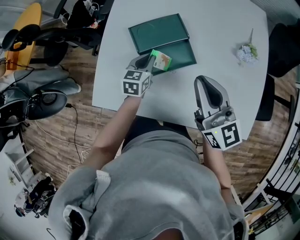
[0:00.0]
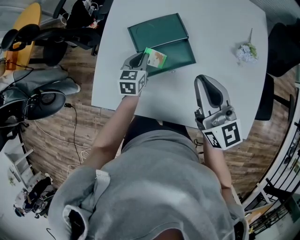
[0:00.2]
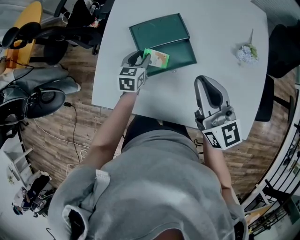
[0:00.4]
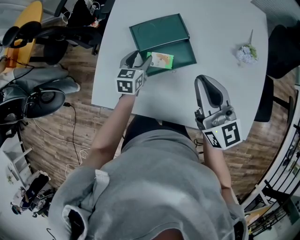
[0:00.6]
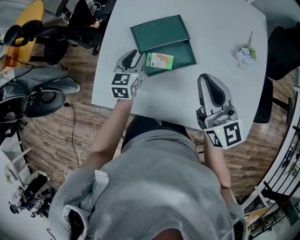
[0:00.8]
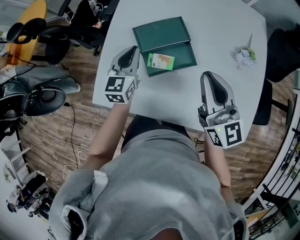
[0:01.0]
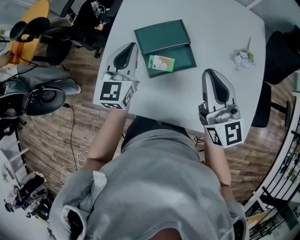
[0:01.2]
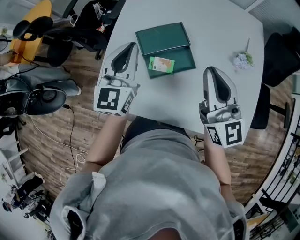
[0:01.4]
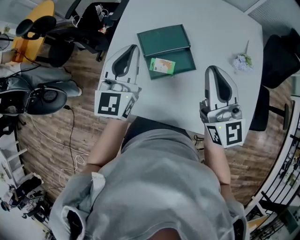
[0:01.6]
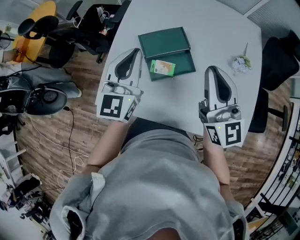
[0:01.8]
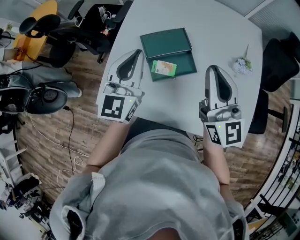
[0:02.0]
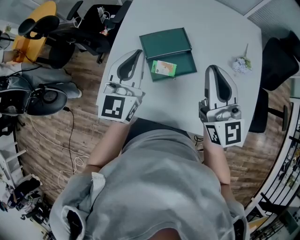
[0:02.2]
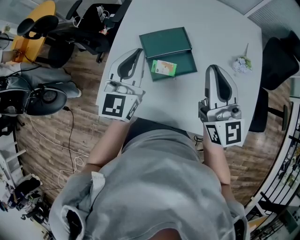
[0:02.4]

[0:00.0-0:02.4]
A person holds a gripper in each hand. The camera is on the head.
0:00.0 to 0:01.2: The left gripper is displaced upward by about 20 cm, swivels roughly 30 degrees, and opens and closes again.
0:01.2 to 0:02.4: The grippers both shift upward by some 5 cm.

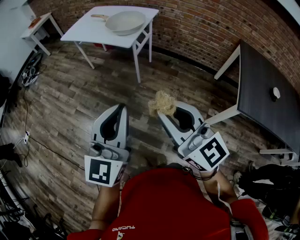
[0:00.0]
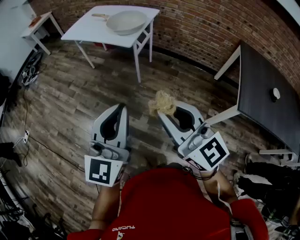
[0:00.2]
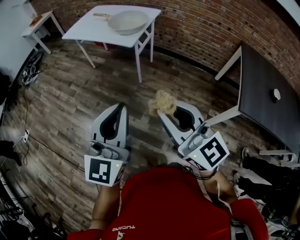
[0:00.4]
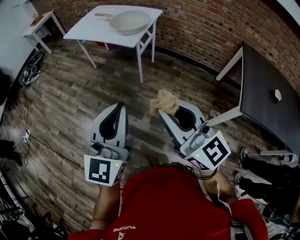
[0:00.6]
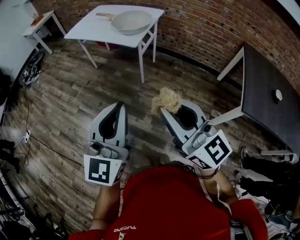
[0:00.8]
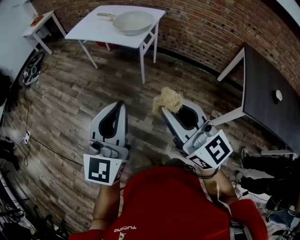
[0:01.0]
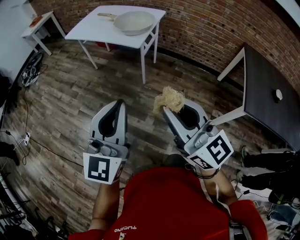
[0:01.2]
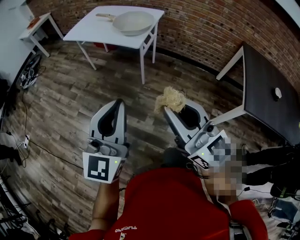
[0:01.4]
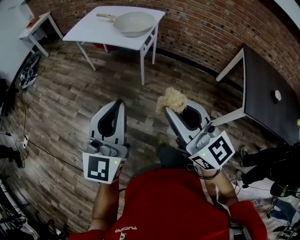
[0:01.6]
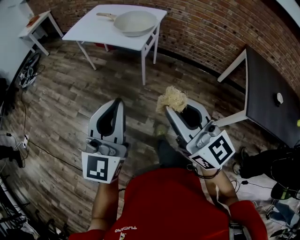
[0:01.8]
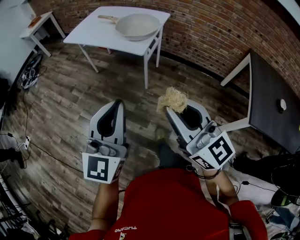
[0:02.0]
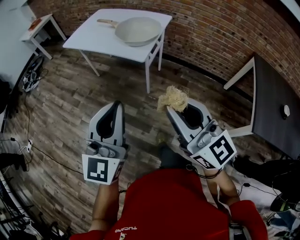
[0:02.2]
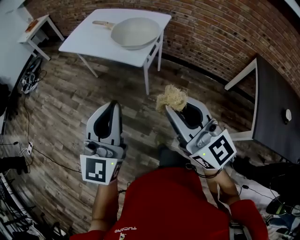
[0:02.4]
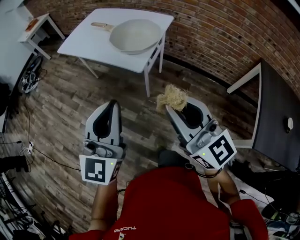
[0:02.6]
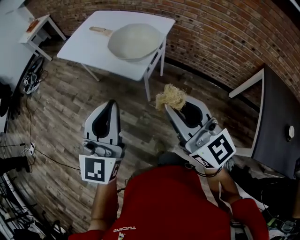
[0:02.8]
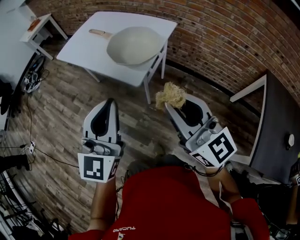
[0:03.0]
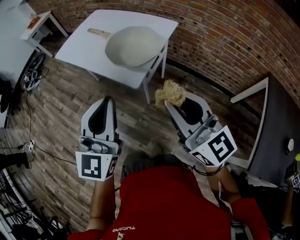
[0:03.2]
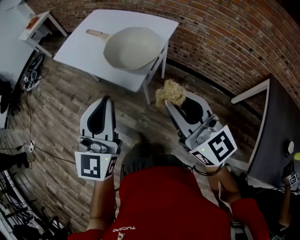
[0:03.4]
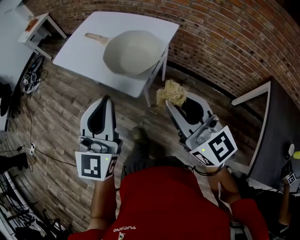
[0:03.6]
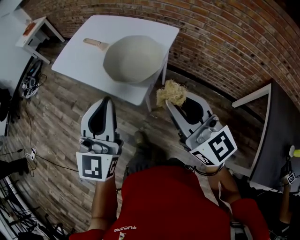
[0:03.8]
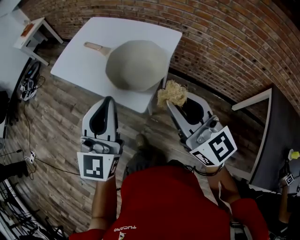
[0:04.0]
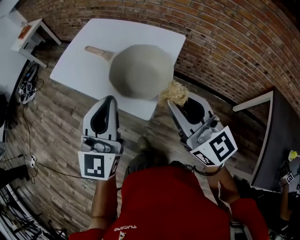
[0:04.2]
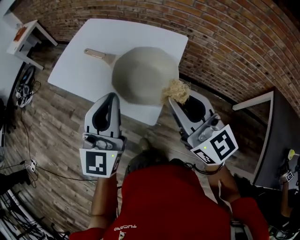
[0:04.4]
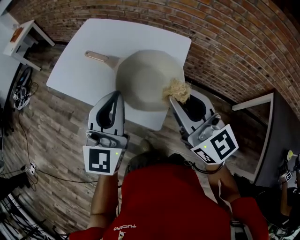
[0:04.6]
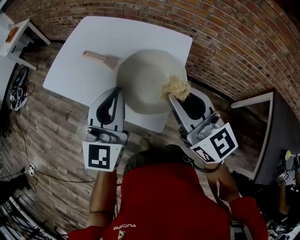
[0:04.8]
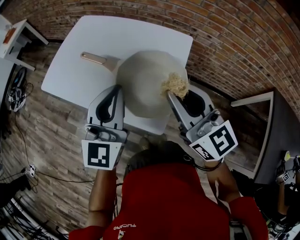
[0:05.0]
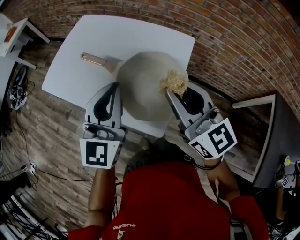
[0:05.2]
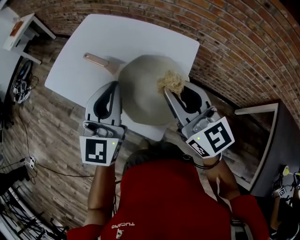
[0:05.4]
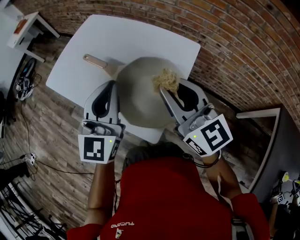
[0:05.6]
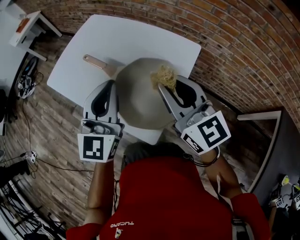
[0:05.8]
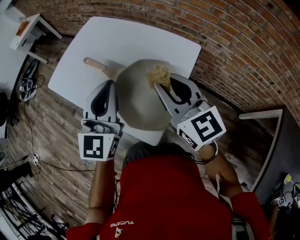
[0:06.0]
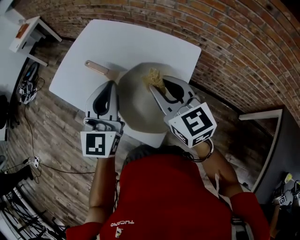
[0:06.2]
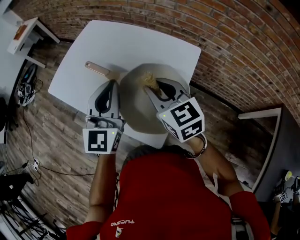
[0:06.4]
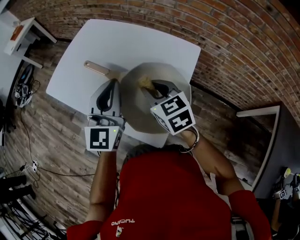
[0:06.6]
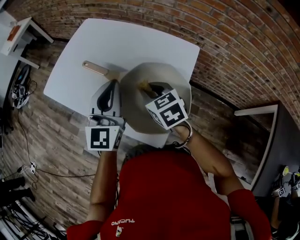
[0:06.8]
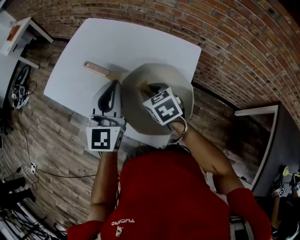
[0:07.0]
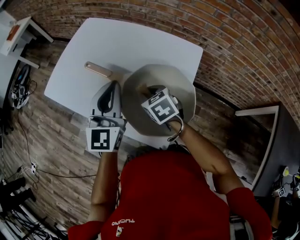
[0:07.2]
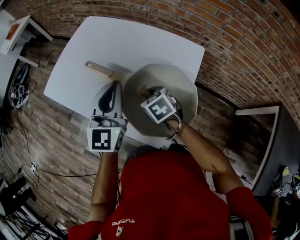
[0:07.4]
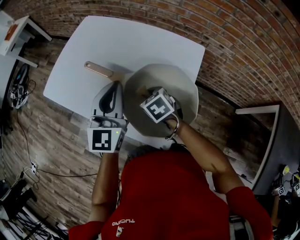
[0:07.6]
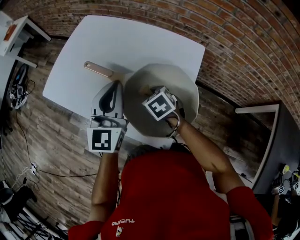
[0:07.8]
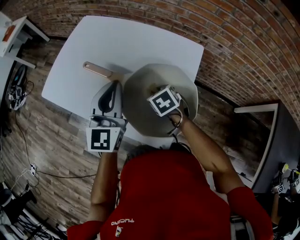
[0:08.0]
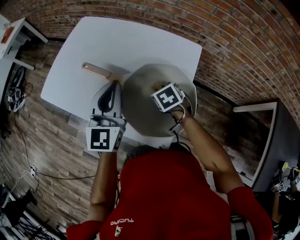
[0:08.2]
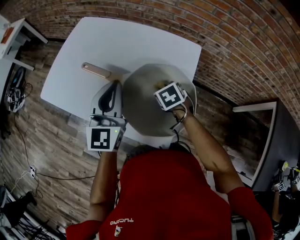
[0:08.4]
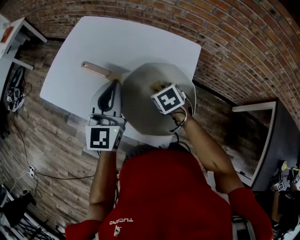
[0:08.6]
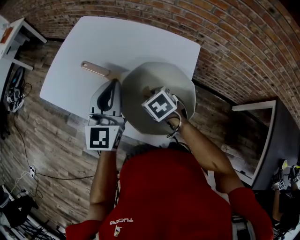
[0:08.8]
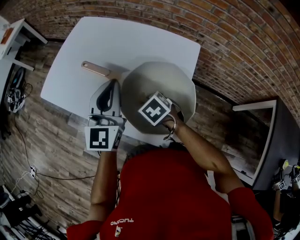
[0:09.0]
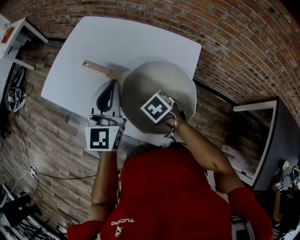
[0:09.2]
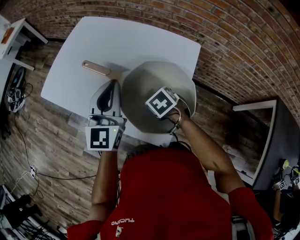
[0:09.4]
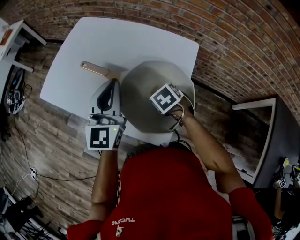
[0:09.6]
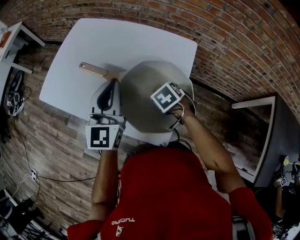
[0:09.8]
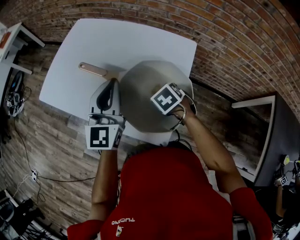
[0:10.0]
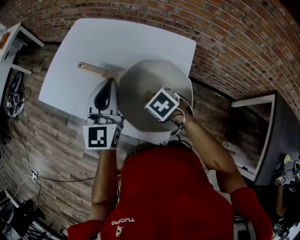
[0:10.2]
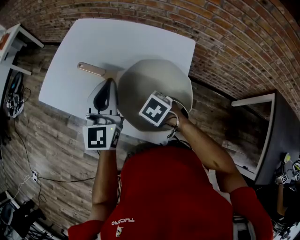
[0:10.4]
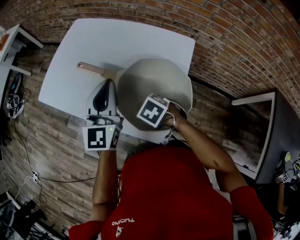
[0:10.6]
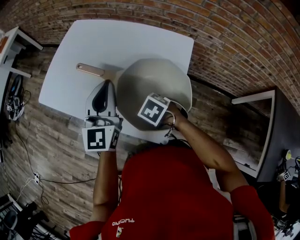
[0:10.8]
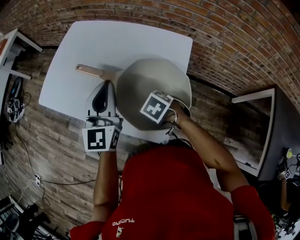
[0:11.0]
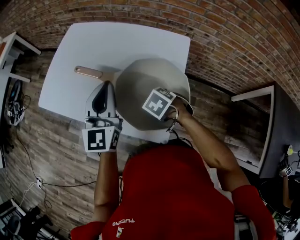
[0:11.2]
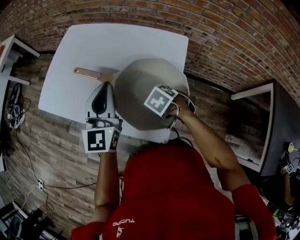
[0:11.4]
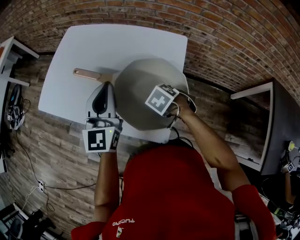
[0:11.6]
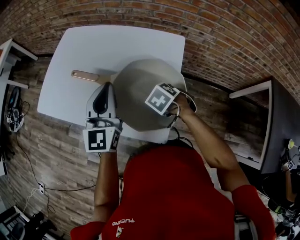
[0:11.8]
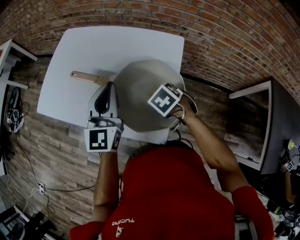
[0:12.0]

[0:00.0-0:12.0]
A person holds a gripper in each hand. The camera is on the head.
0:00.0 to 0:01.6: The right gripper moves to the left, some 5 cm, while the left gripper is displaced to the left and forward by roughly 10 cm.
0:01.6 to 0:03.0: Both grippers move forward, roughly 35 cm.
0:03.0 to 0:04.4: Both grippers travel together forward, roughly 25 cm.
0:04.4 to 0:06.0: Both grippers move forward, roughly 15 cm.
0:06.0 to 0:07.6: The right gripper is displaced downward by some 25 cm, and angles its fingers downward, by roughly 50 degrees. The left gripper goes about 10 cm forward and downward.
0:07.6 to 0:09.0: The right gripper goes to the right and returns, some 10 cm each way.
0:10.4 to 0:12.0: The right gripper shifts by roughly 10 cm.

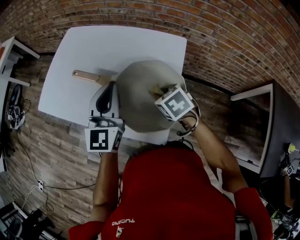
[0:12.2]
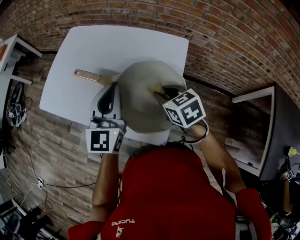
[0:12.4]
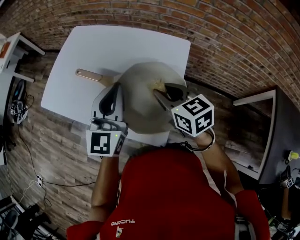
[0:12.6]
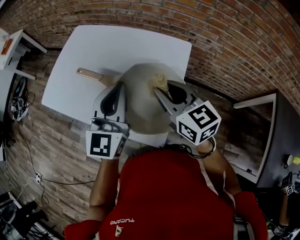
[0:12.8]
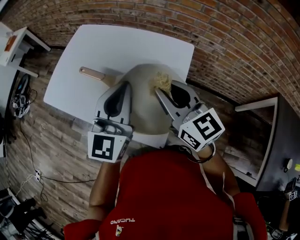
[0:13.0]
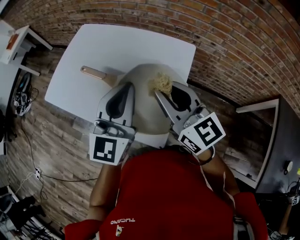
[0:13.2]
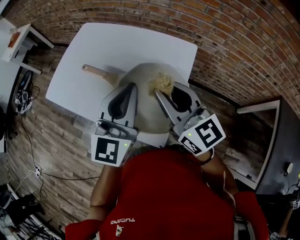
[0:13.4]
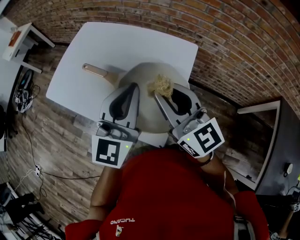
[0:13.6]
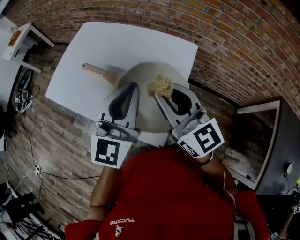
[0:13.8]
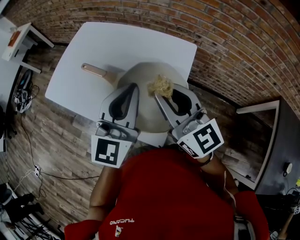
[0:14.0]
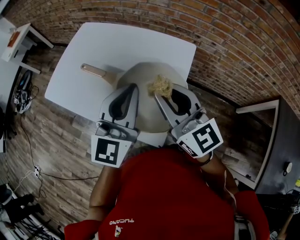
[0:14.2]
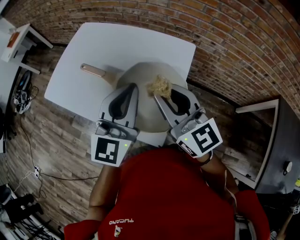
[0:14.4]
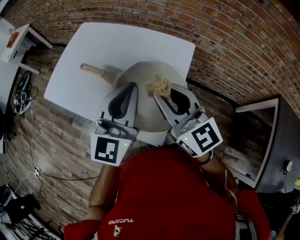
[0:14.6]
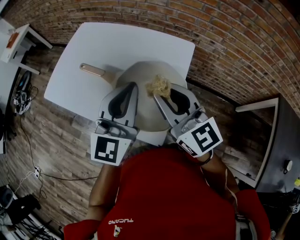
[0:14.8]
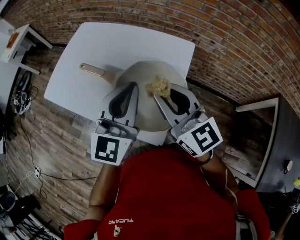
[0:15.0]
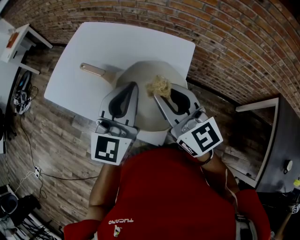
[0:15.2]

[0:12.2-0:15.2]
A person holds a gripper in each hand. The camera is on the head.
0:12.2 to 0:13.8: The left gripper travels upward, to the right and backward by some 10 cm. The right gripper heads upward, covering some 20 cm, and tips its fingers upward by about 60 degrees.
0:13.8 to 0:15.2: The two grippers keep their place.

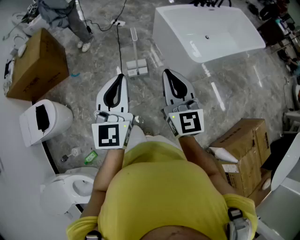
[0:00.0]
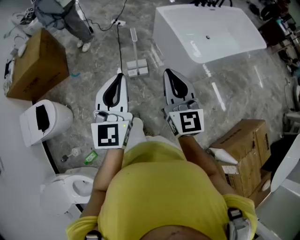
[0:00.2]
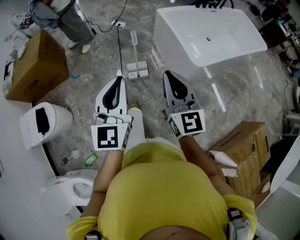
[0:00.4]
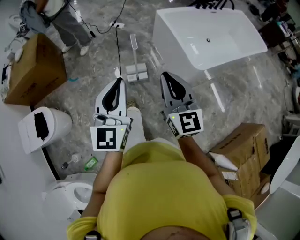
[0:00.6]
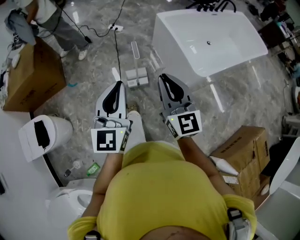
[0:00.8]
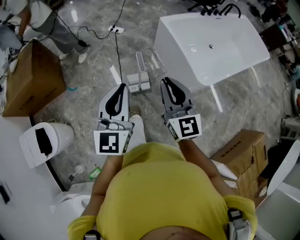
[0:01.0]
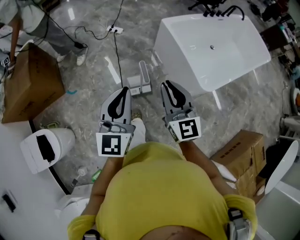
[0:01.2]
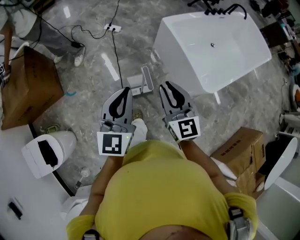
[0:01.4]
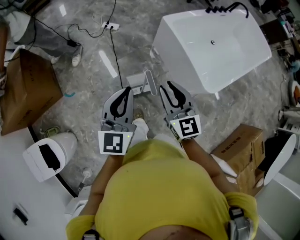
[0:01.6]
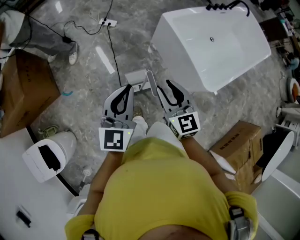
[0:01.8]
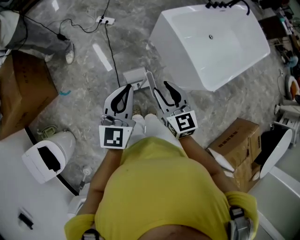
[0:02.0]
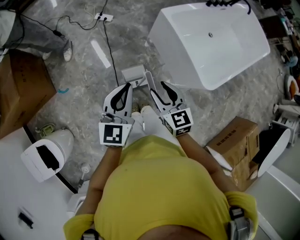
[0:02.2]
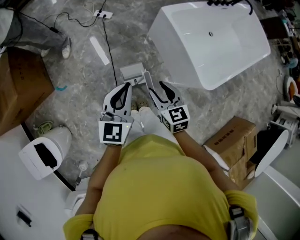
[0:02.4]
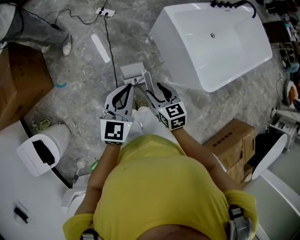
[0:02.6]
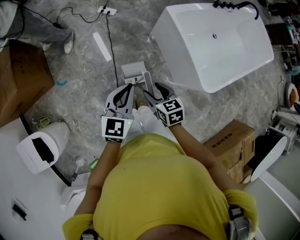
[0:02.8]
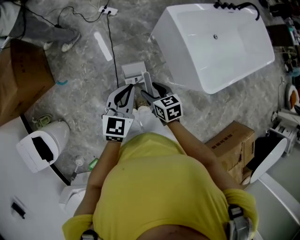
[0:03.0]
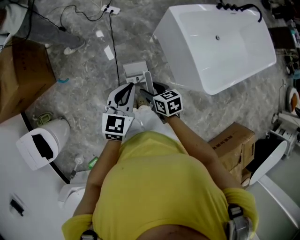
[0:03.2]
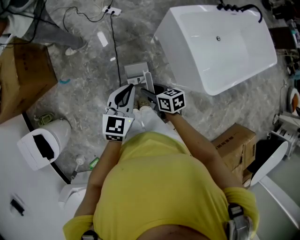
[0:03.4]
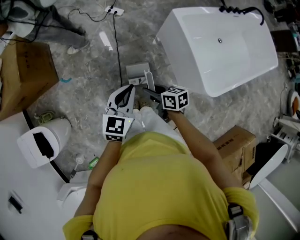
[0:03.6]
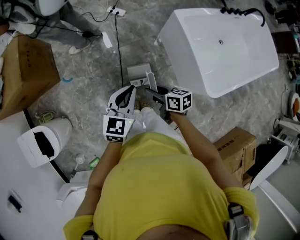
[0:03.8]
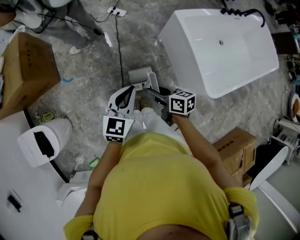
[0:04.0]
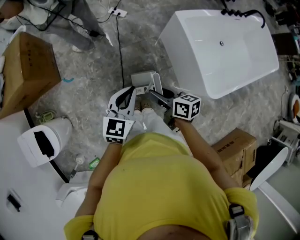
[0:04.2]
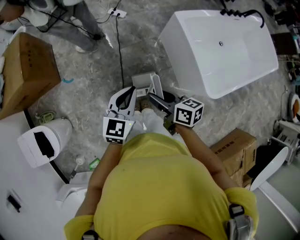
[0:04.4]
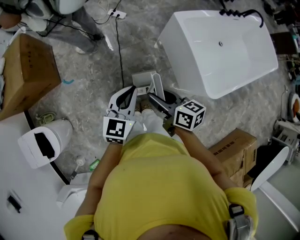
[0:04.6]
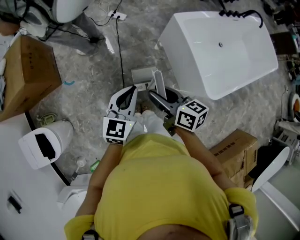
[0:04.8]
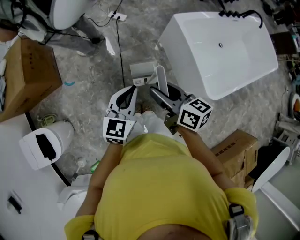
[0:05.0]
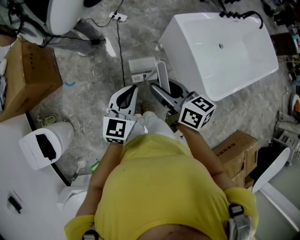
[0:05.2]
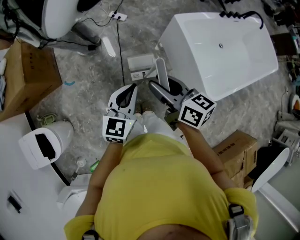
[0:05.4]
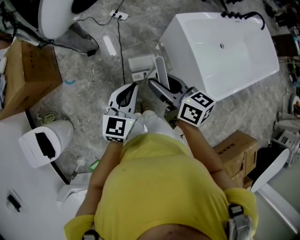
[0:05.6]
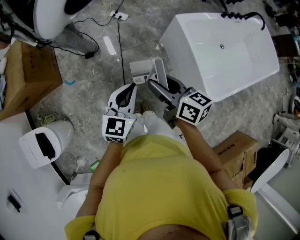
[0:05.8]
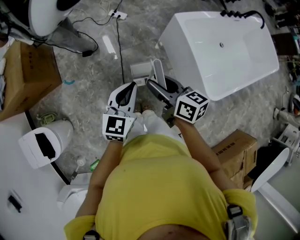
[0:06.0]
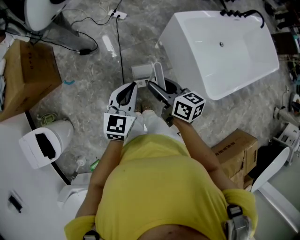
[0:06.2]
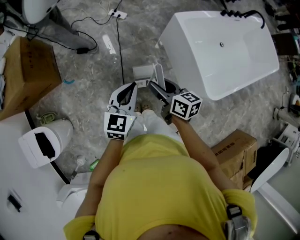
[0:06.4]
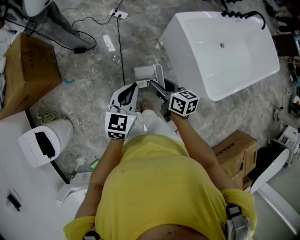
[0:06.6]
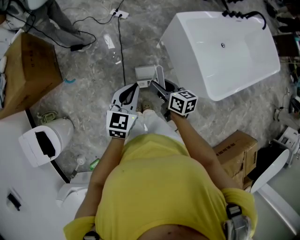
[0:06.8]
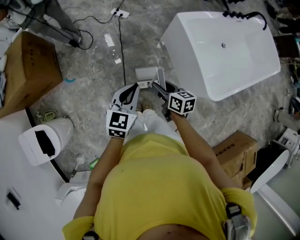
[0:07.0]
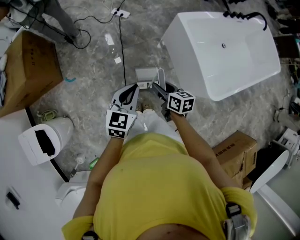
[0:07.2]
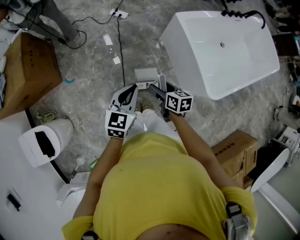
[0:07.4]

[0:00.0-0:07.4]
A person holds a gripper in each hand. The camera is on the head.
0:00.0 to 0:01.4: Both grippers travel together forward, about 30 cm.
0:01.4 to 0:03.0: The left gripper heads downward and forward, covering about 15 cm, and changes its angle by some 20 degrees. Meanwhile the right gripper shifts about 20 cm downward, tips its fingers downward by about 40 degrees, and opens up.
0:03.0 to 0:04.4: The right gripper shifts some 10 cm upward, and changes its angle by about 30 degrees.
0:04.4 to 0:06.0: The right gripper travels forward and upward by about 10 cm.
0:06.0 to 0:07.4: The right gripper is displaced downward by approximately 15 cm.
